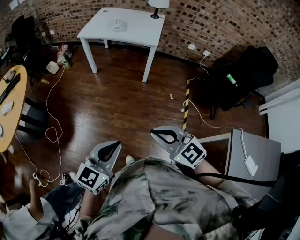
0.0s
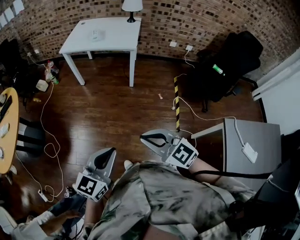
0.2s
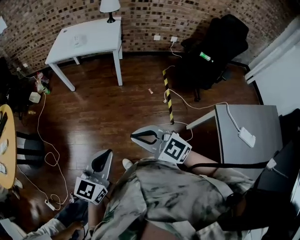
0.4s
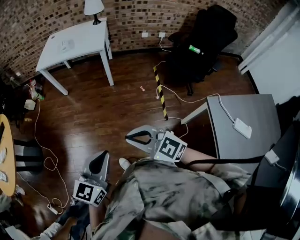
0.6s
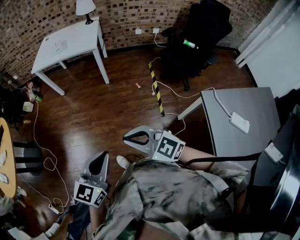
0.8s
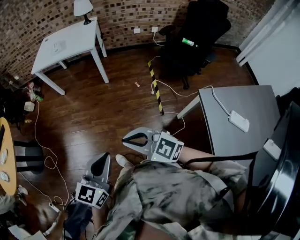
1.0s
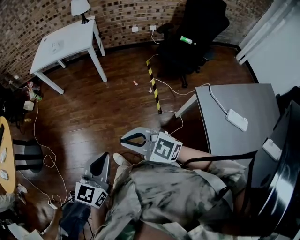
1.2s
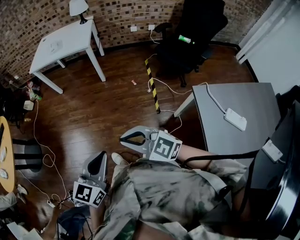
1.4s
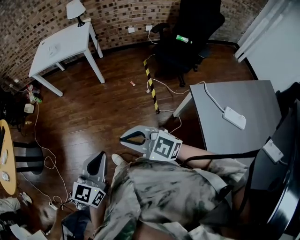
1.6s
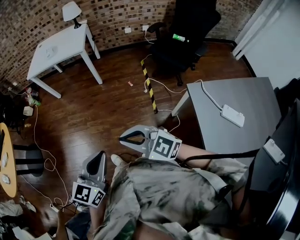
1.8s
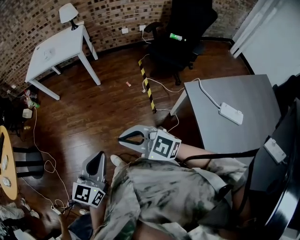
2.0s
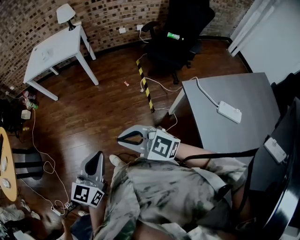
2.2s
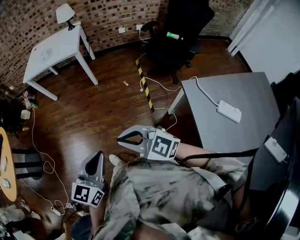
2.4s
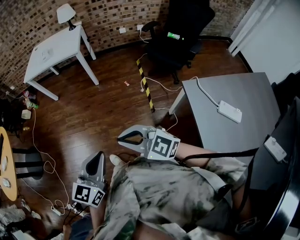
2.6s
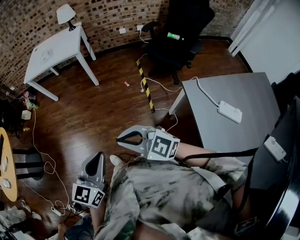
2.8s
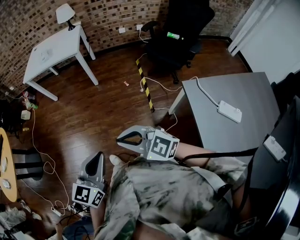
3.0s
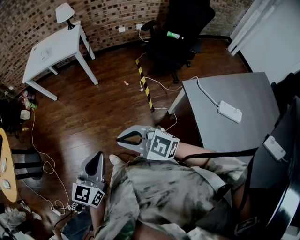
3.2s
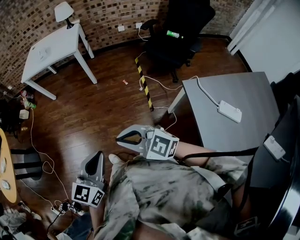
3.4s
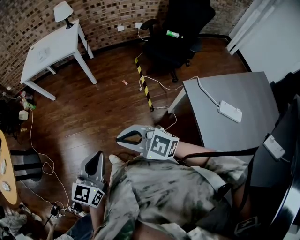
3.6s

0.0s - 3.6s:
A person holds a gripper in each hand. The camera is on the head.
0.0s - 1.8s: Both grippers travel together to the right and backward, approximately 30 cm.
1.8s - 3.6s: The grippers move only a little.

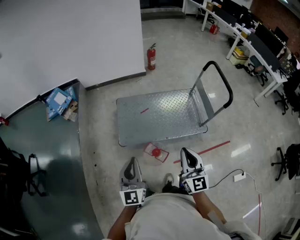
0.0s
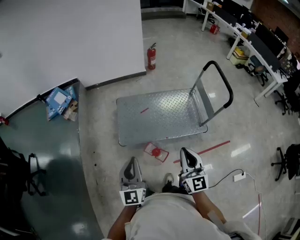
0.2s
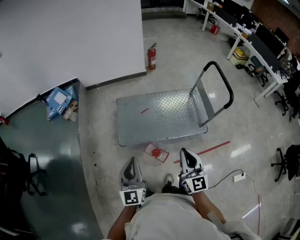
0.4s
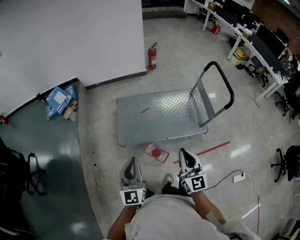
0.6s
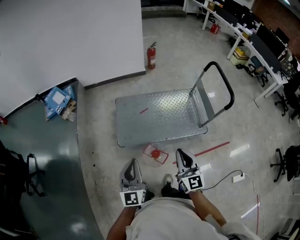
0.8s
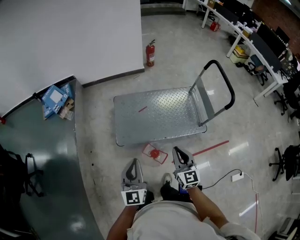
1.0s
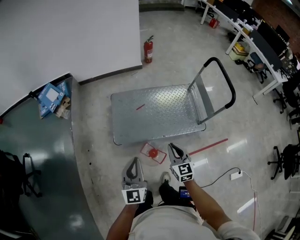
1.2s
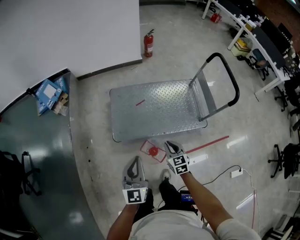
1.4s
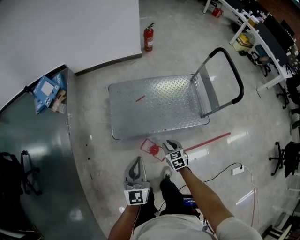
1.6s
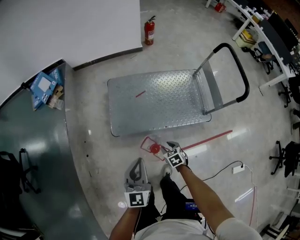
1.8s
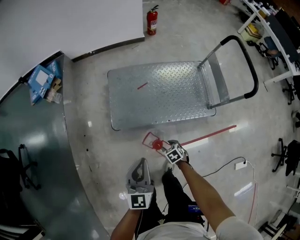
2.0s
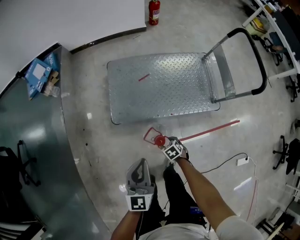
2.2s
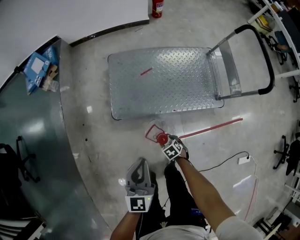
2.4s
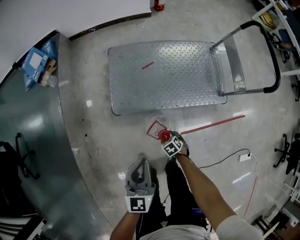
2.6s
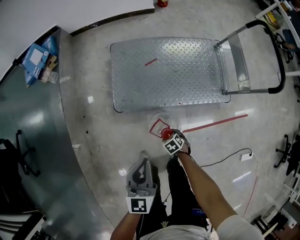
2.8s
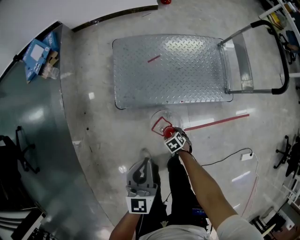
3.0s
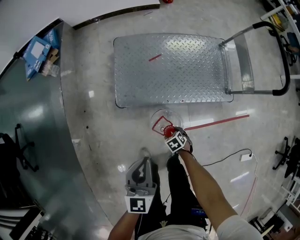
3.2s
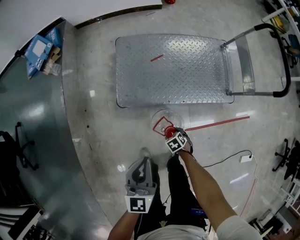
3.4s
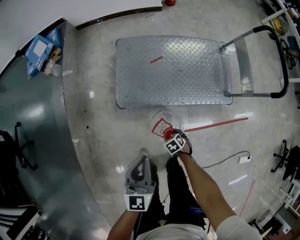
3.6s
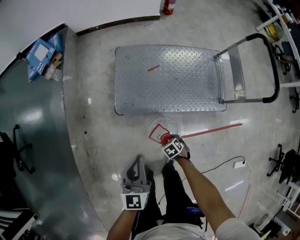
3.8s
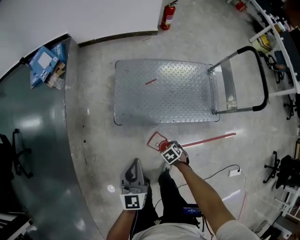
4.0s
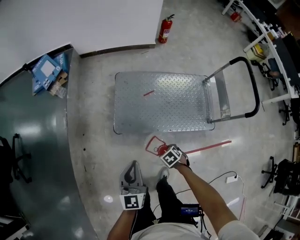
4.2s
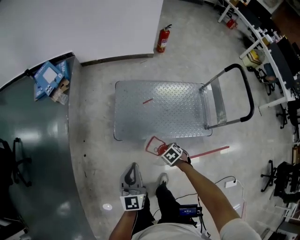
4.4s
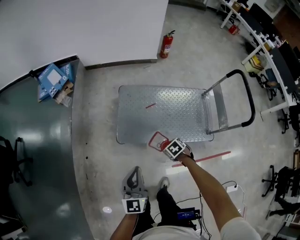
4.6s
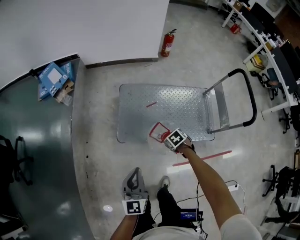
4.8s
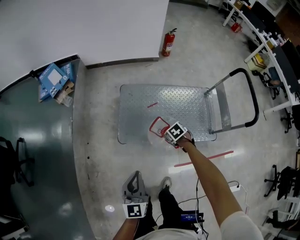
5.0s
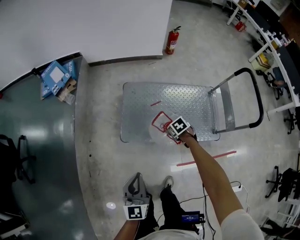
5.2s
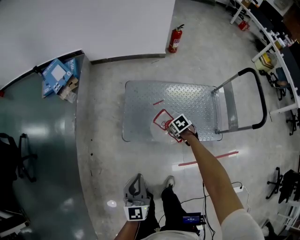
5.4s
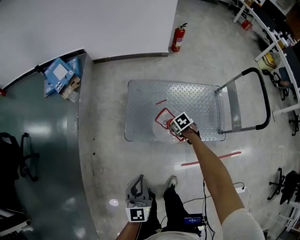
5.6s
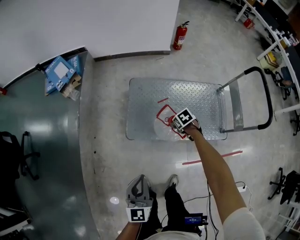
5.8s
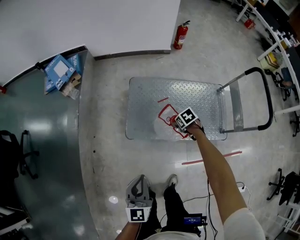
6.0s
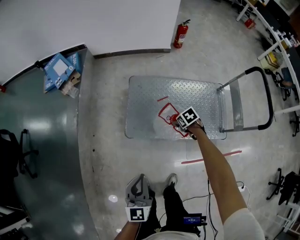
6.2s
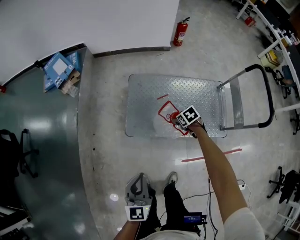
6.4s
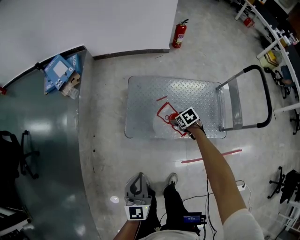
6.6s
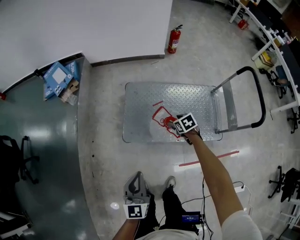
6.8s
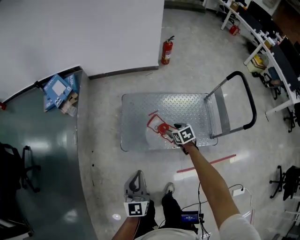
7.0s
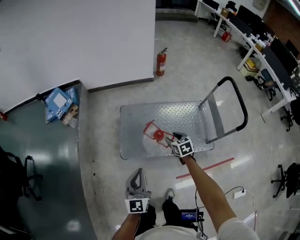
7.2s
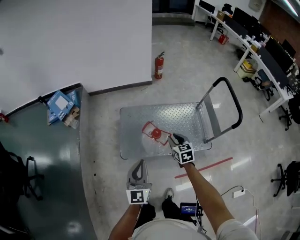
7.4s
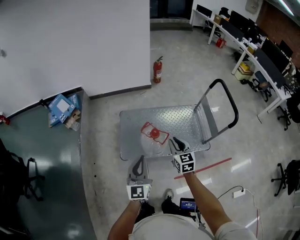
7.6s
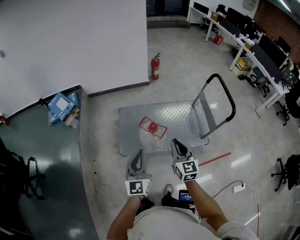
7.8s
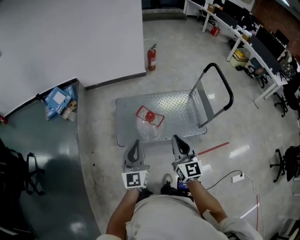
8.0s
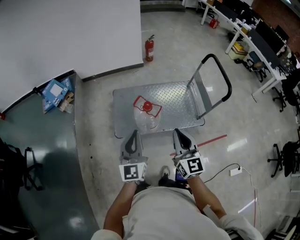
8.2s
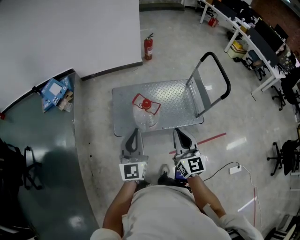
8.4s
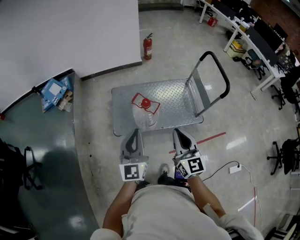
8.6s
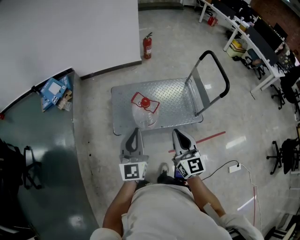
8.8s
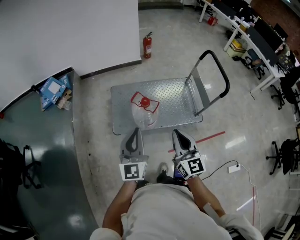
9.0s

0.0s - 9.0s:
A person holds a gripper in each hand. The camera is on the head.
0.0s - 1.6s: The left gripper heads downward and forward, covering roughly 15 cm. Meanwhile the right gripper is displaced downward by approximately 35 cm, and tips its fingers downward by approximately 50 degrees.
1.6s - 3.0s: The right gripper goes approximately 25 cm downward, tilts its fingers roughly 30 degrees downward, and opens, while the left gripper heads downward, covering some 10 cm.
3.0s - 4.4s: The left gripper goes some 10 cm upward. Meanwhile the right gripper travels upward by roughly 20 cm.
4.4s - 6.0s: The right gripper changes place by about 20 cm.
6.0s - 7.6s: The left gripper is displaced upward by roughly 15 cm. The right gripper heads upward, covering about 30 cm, points its fingers about 50 degrees further upward, and closes its fingers.
7.6s - 9.0s: The left gripper shifts about 10 cm backward and upward; the right gripper heads backward and upward, covering approximately 20 cm, and changes its angle by roughly 20 degrees.

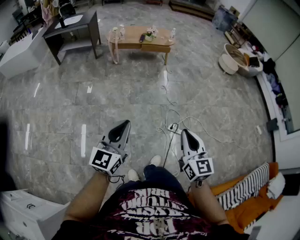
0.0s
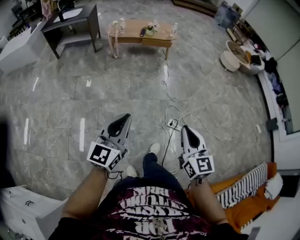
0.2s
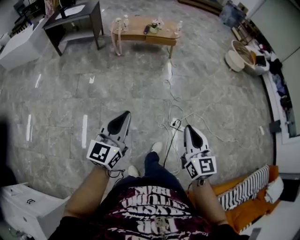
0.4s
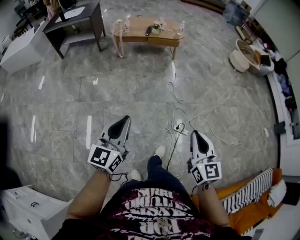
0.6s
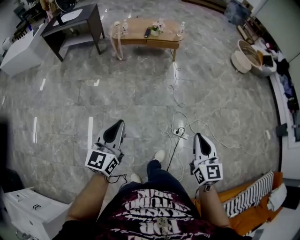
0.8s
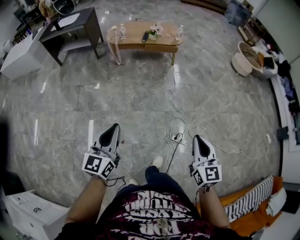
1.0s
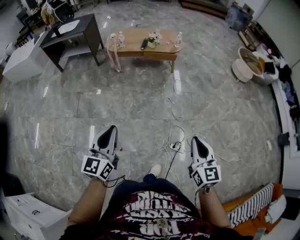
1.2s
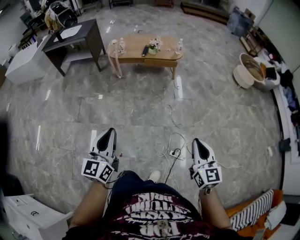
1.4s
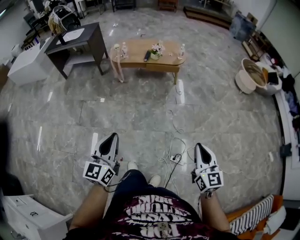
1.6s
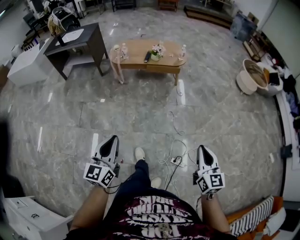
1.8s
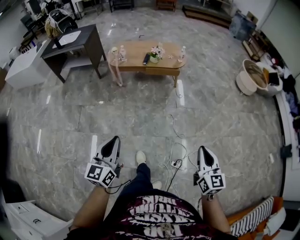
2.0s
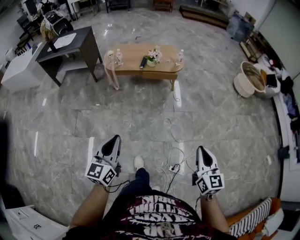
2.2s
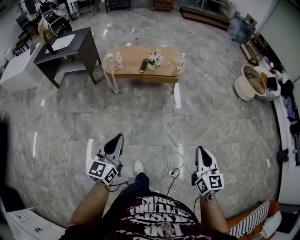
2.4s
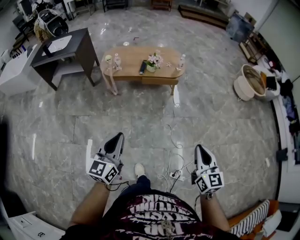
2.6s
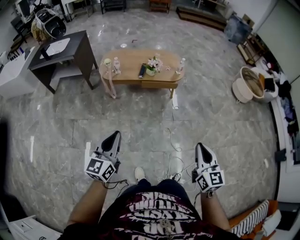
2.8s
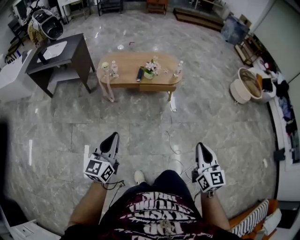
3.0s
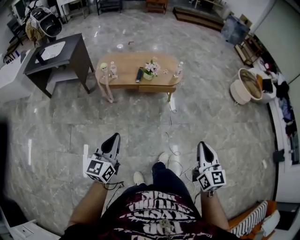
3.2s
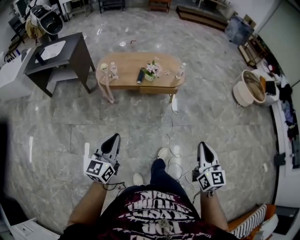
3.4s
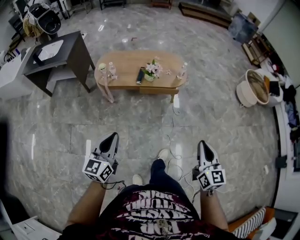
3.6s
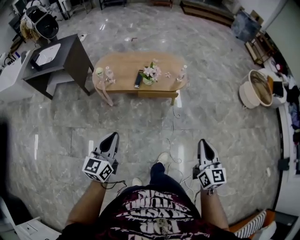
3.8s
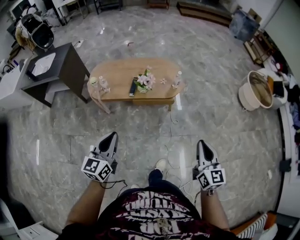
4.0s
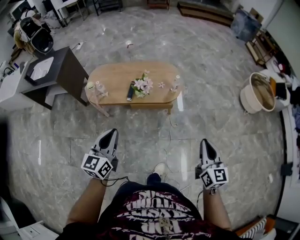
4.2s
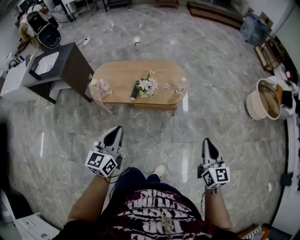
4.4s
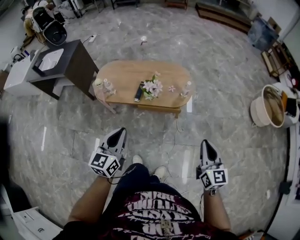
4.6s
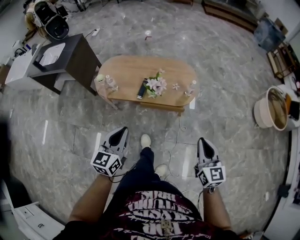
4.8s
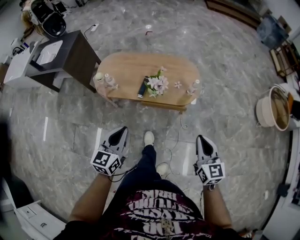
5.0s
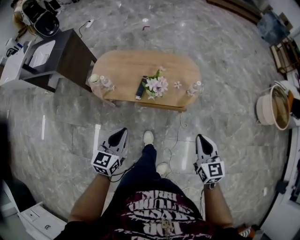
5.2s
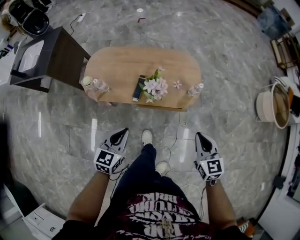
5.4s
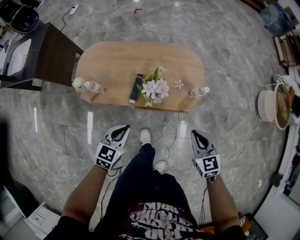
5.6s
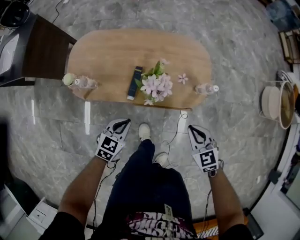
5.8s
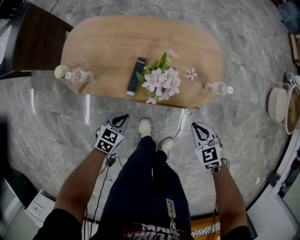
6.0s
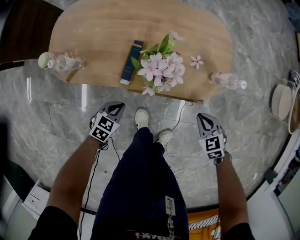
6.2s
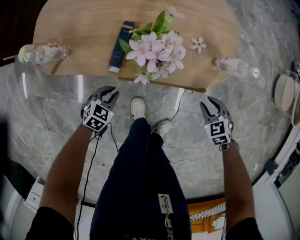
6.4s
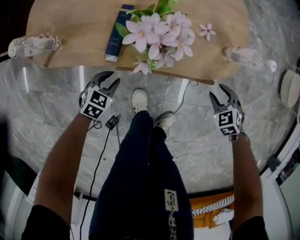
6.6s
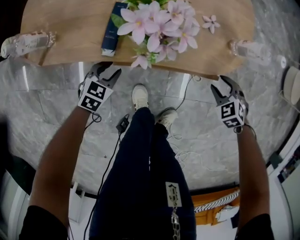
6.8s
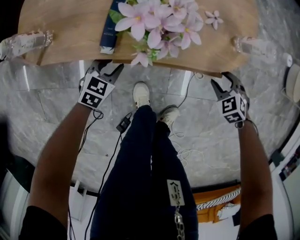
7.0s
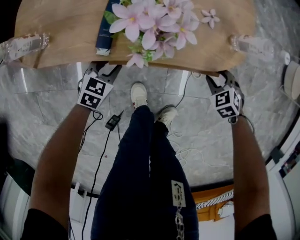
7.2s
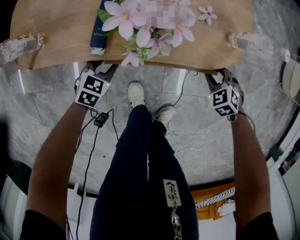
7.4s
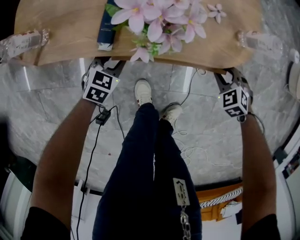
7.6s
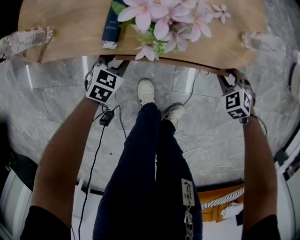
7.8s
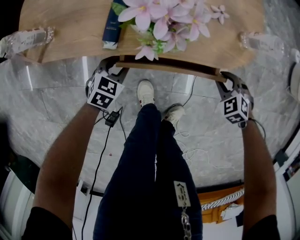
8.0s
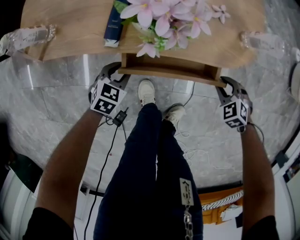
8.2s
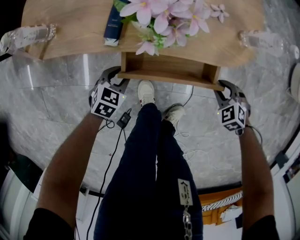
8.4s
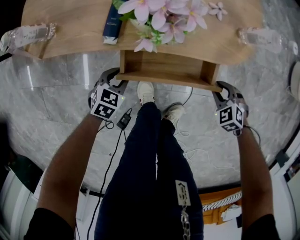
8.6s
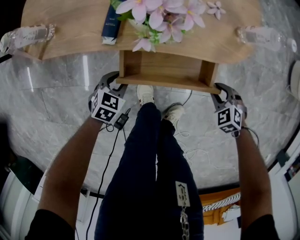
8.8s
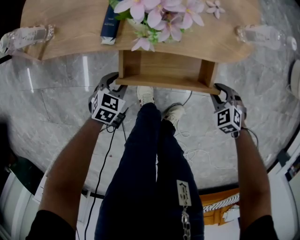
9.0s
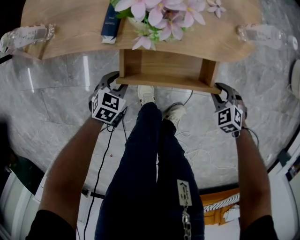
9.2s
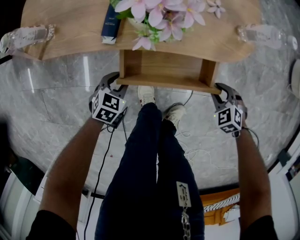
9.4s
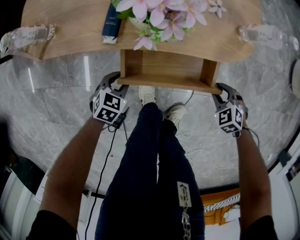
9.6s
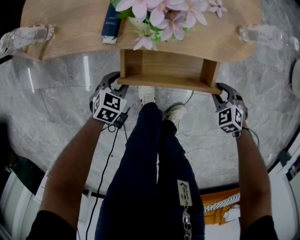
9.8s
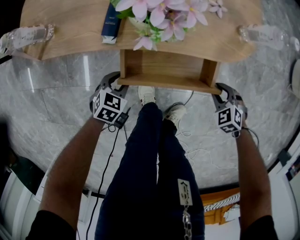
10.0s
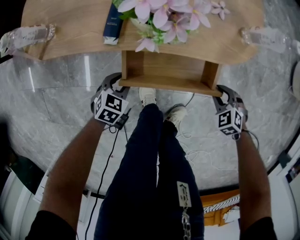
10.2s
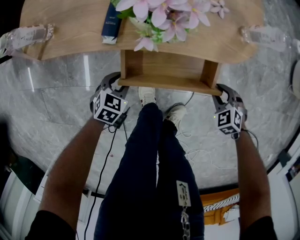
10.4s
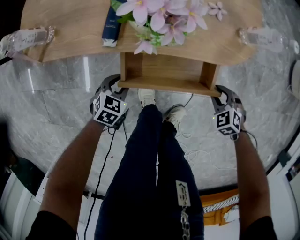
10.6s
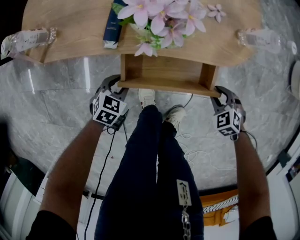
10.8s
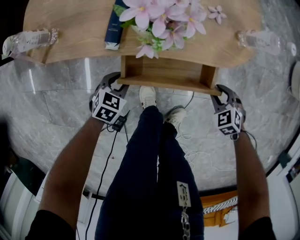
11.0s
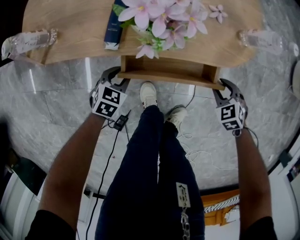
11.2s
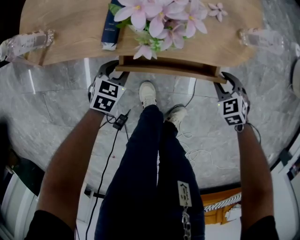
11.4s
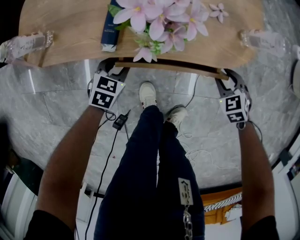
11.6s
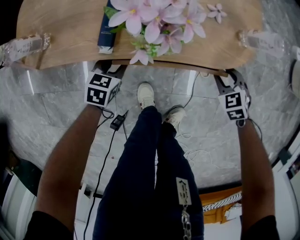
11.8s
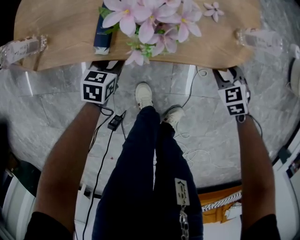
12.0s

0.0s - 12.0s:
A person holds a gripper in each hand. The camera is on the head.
0.0s - 1.6s: The right gripper moves forward and to the right, some 35 cm. Meanwhile the left gripper travels forward by about 30 cm.
1.6s - 3.0s: Both grippers travel together forward, approximately 30 cm.
3.0s - 4.4s: Both grippers move forward, roughly 35 cm.
4.4s - 6.0s: Both grippers travel together downward and forward, about 50 cm. The right gripper tips its fingers downward by approximately 40 degrees; the left gripper tips its fingers downward by about 40 degrees.
6.0s - 7.6s: The two grippers go about 25 cm downward. The right gripper swivels roughly 30 degrees, and opens up. The left gripper opens up.
7.6s - 9.0s: The two grippers go some 10 cm backward.
9.0s - 10.4s: Both grippers stay about where they are.
10.4s - 12.0s: Both grippers travel together forward, approximately 10 cm. The left gripper rotates about 20 degrees.
